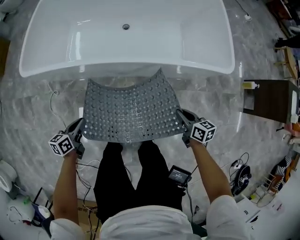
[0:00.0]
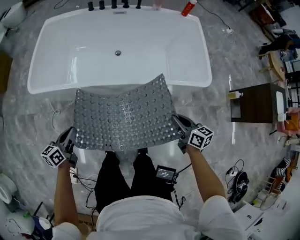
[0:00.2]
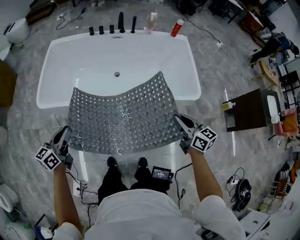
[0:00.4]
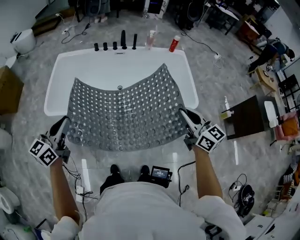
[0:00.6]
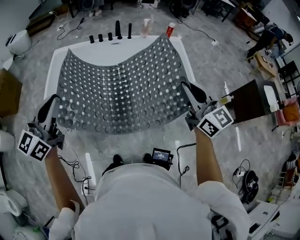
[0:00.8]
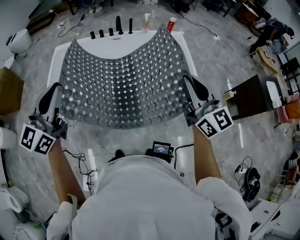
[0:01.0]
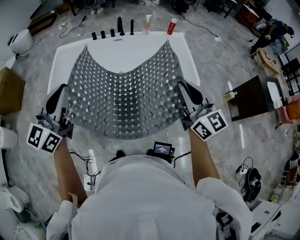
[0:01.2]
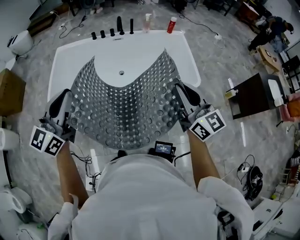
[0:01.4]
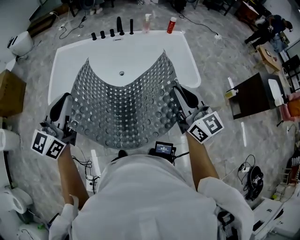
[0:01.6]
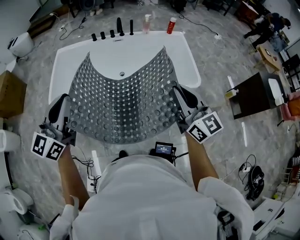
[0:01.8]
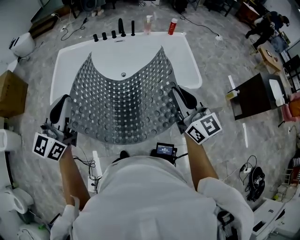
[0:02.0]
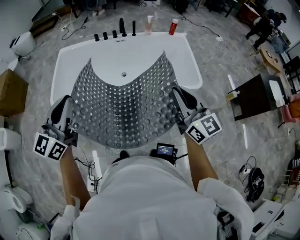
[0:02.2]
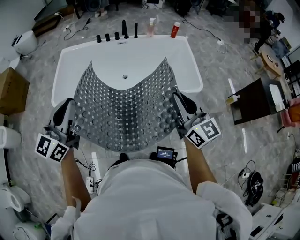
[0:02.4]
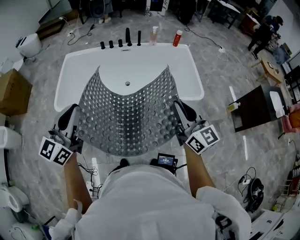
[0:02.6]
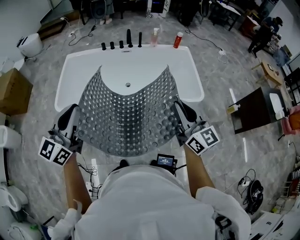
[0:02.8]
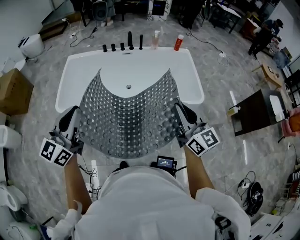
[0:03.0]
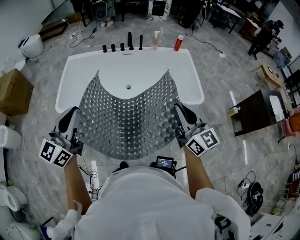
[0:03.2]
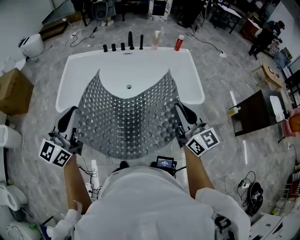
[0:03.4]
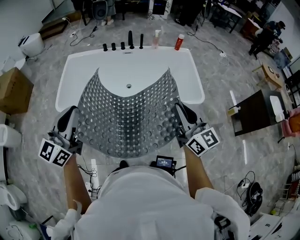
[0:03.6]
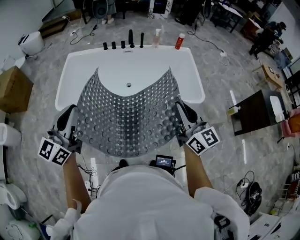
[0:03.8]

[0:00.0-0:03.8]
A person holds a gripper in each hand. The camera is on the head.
0:00.0 to 0:01.2: Both grippers travel together upward, approximately 60 cm. The right gripper points its fingers approximately 40 degrees further upward. Meanwhile the left gripper tilts its fingers about 40 degrees upward.
0:01.2 to 0:03.8: The grippers move only a little.

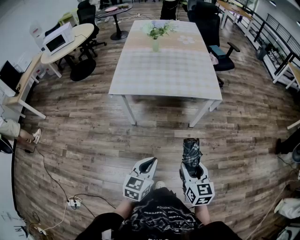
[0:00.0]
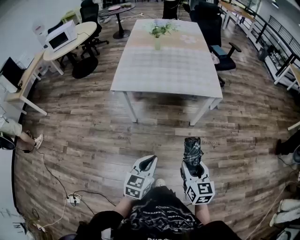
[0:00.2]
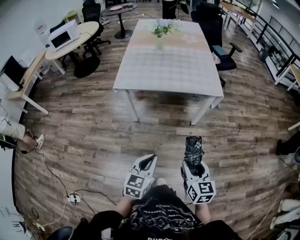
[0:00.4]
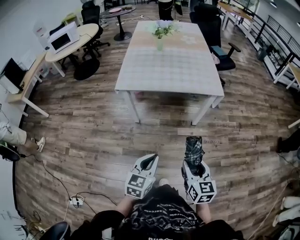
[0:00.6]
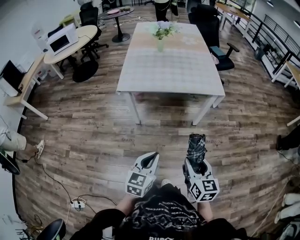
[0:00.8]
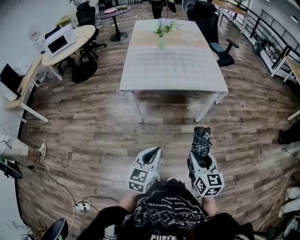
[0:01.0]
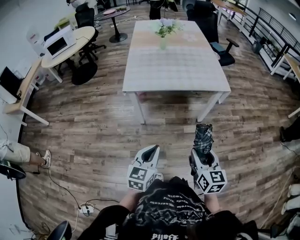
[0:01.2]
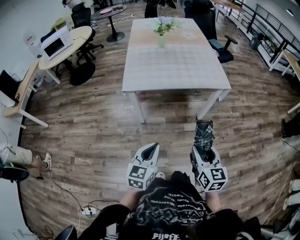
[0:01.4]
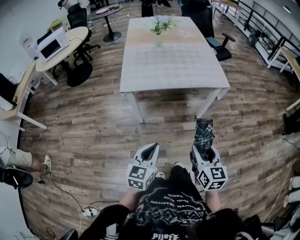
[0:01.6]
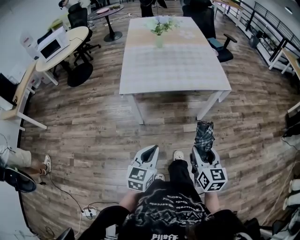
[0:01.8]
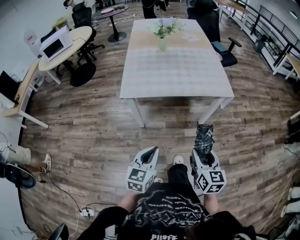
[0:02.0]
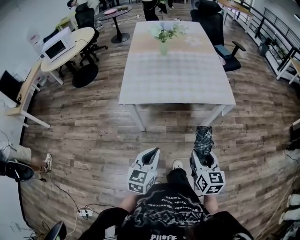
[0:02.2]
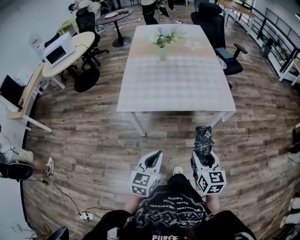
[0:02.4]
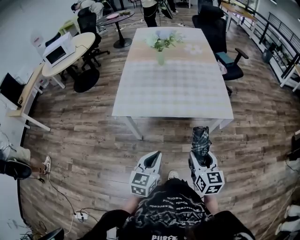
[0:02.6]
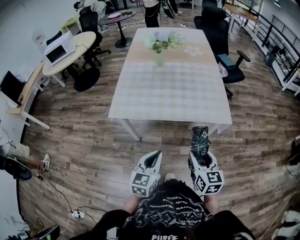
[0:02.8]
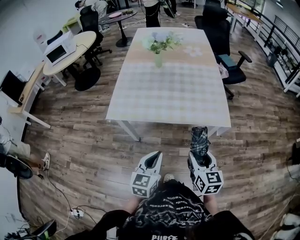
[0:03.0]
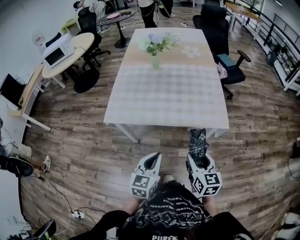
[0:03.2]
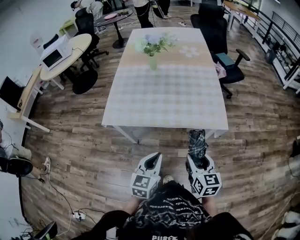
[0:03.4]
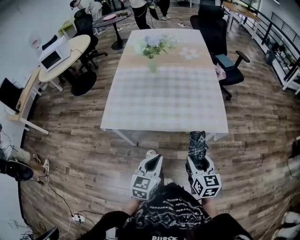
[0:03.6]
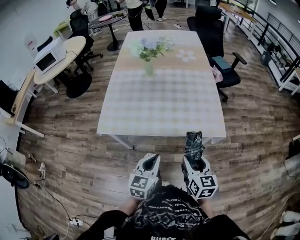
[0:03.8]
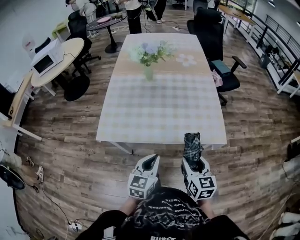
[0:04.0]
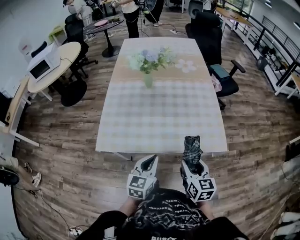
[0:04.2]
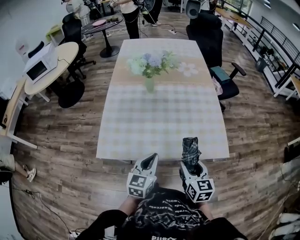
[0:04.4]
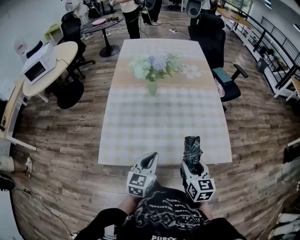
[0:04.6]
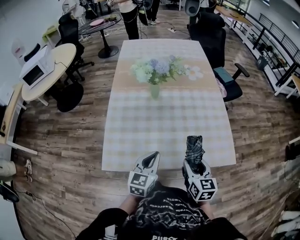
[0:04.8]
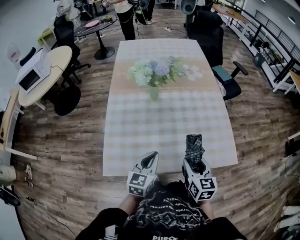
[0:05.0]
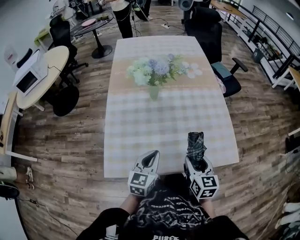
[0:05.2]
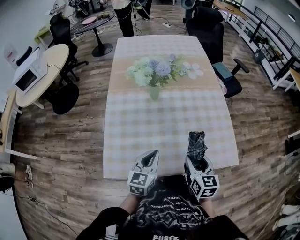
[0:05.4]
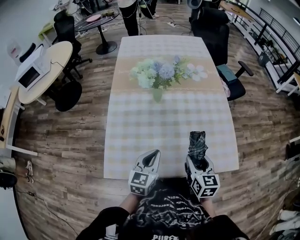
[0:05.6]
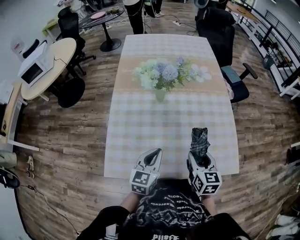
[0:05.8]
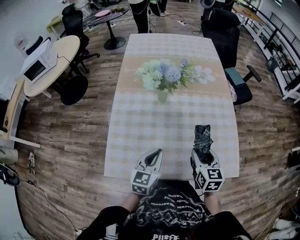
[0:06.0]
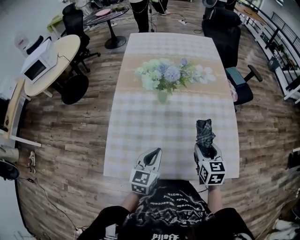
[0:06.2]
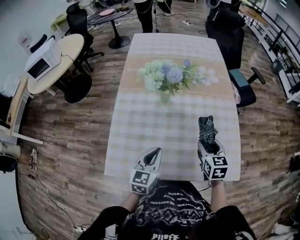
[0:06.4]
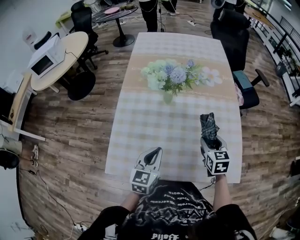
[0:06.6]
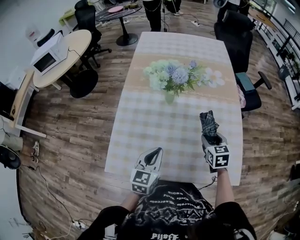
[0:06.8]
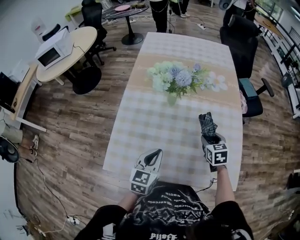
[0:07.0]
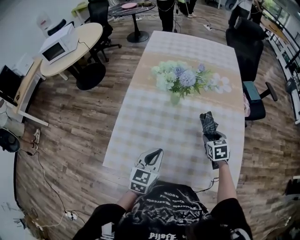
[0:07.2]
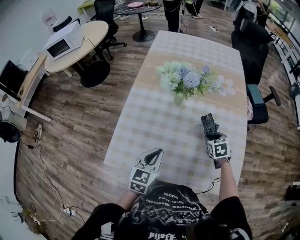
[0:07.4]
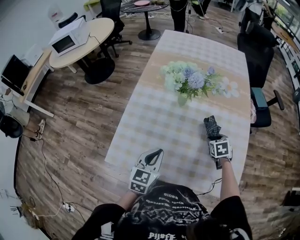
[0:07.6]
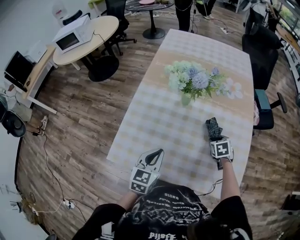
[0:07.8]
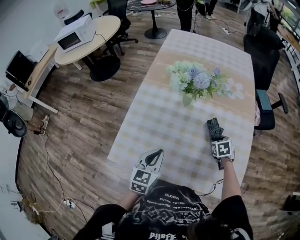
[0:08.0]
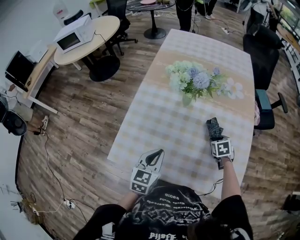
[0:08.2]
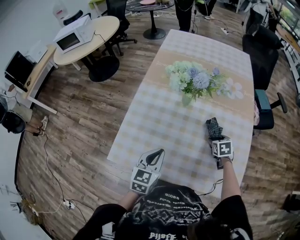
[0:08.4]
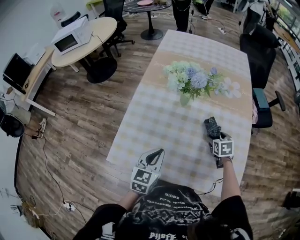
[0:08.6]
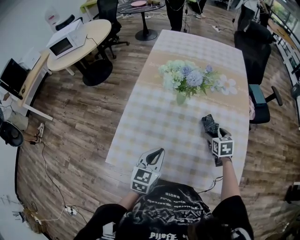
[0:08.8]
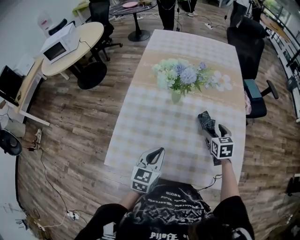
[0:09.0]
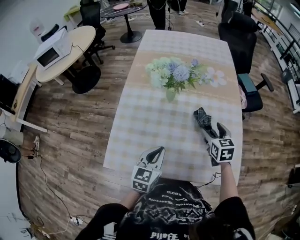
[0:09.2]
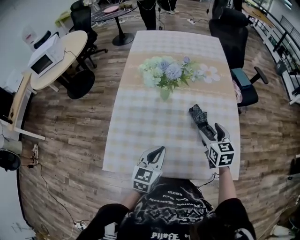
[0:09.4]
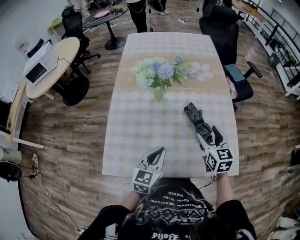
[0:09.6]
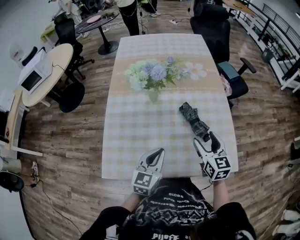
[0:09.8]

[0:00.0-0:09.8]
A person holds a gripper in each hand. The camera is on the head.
0:00.0 to 0:01.4: The two grippers go about 15 cm to the left.
0:01.4 to 0:02.8: The left gripper heads forward and to the right, covering about 30 cm, while the right gripper shifts roughly 30 cm forward.
0:02.8 to 0:04.2: The grippers both shift forward by roughly 20 cm.
0:04.2 to 0:05.6: The two grippers go about 25 cm forward and to the left.
0:05.6 to 0:07.0: The right gripper goes about 20 cm forward, and rotates some 30 degrees.
0:07.0 to 0:08.4: The right gripper moves downward, approximately 5 cm.
0:08.4 to 0:09.8: The right gripper goes about 20 cm upward and backward, and points its fingers about 40 degrees further upward, while the left gripper goes some 5 cm to the right.

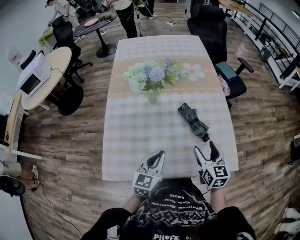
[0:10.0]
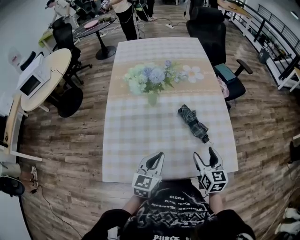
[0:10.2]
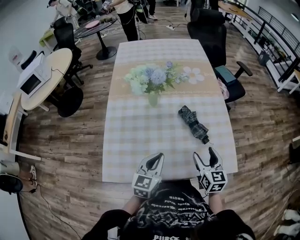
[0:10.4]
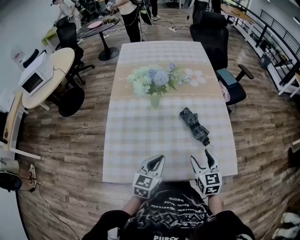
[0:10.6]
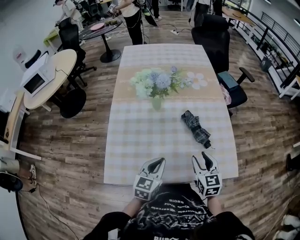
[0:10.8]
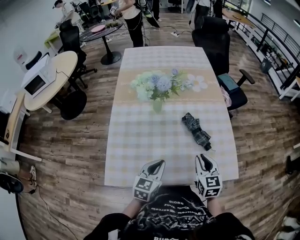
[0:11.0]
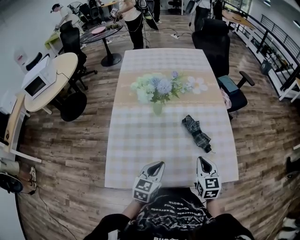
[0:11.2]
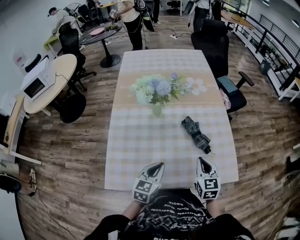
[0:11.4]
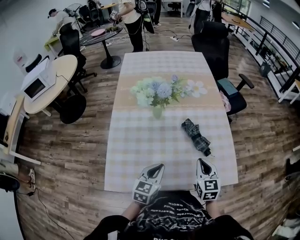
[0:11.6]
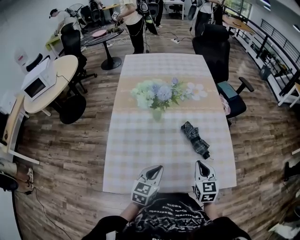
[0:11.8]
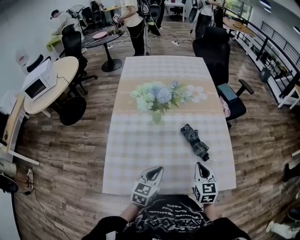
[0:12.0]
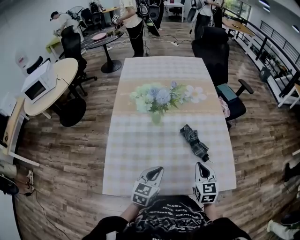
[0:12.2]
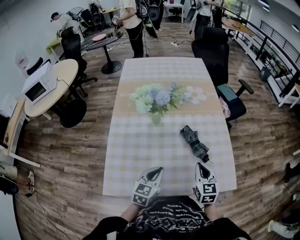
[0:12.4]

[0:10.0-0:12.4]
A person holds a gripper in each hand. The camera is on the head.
0:10.0 to 0:11.2: The right gripper closes up.
0:11.2 to 0:12.4: There are only small adjustments of the grippers.

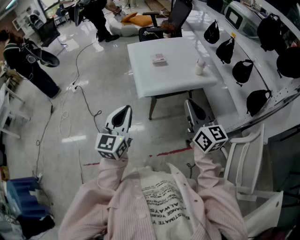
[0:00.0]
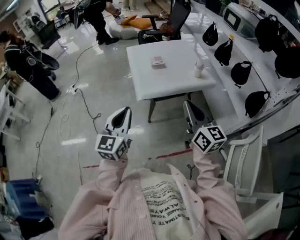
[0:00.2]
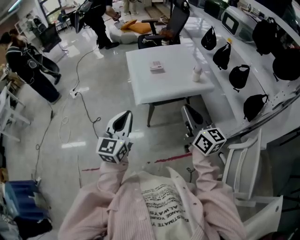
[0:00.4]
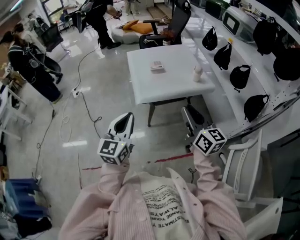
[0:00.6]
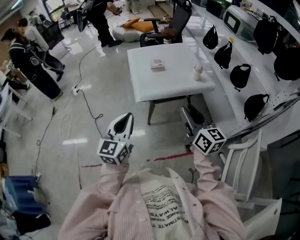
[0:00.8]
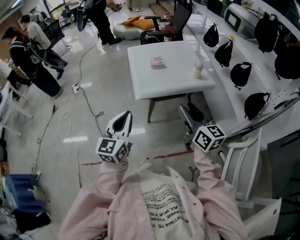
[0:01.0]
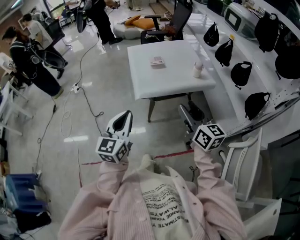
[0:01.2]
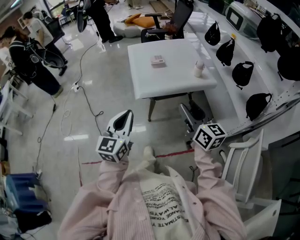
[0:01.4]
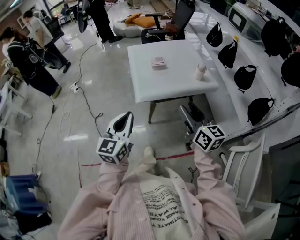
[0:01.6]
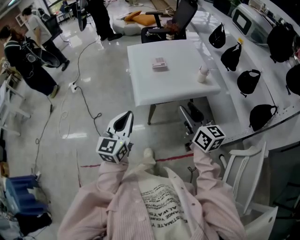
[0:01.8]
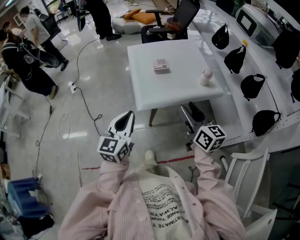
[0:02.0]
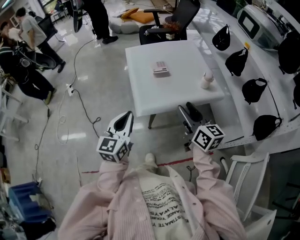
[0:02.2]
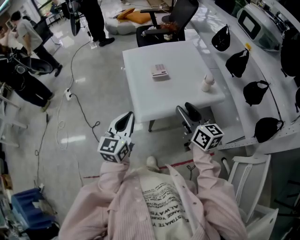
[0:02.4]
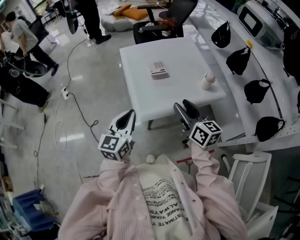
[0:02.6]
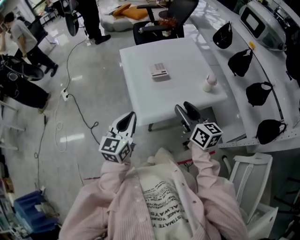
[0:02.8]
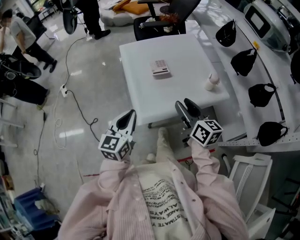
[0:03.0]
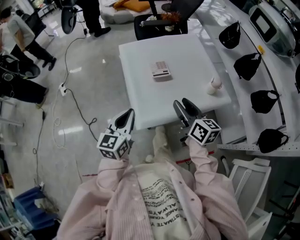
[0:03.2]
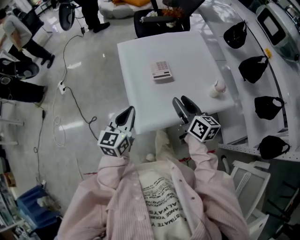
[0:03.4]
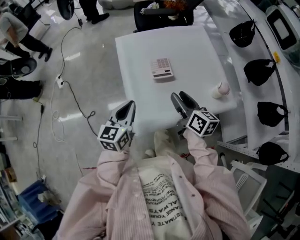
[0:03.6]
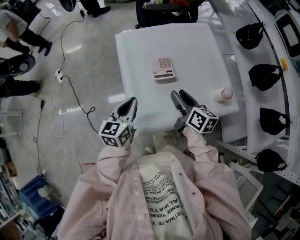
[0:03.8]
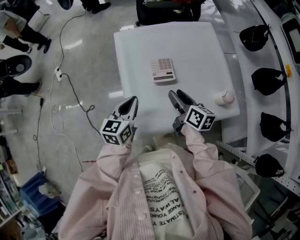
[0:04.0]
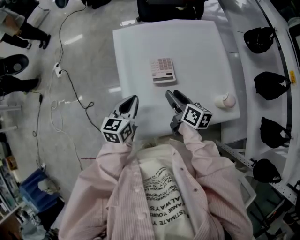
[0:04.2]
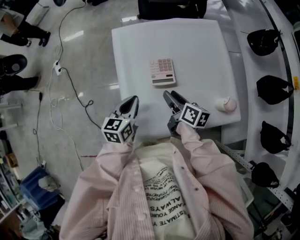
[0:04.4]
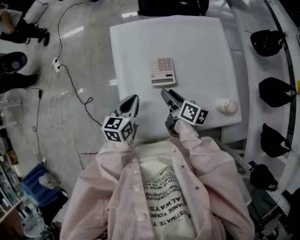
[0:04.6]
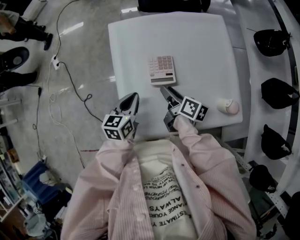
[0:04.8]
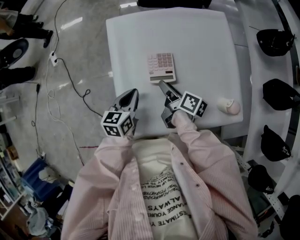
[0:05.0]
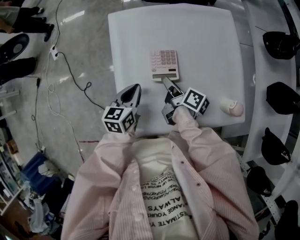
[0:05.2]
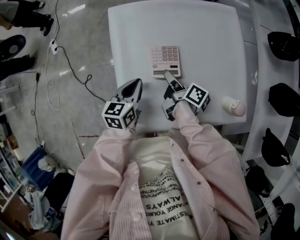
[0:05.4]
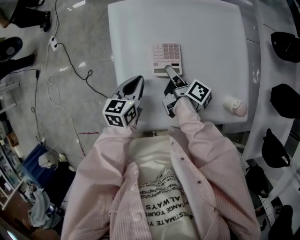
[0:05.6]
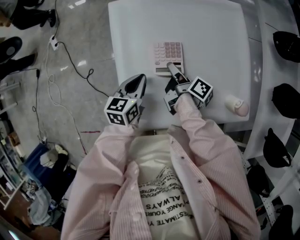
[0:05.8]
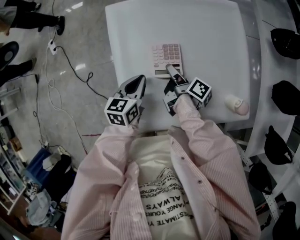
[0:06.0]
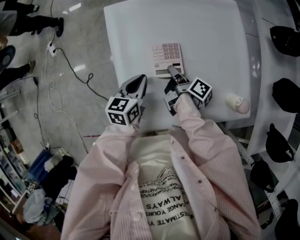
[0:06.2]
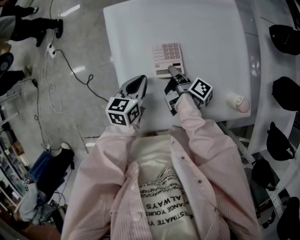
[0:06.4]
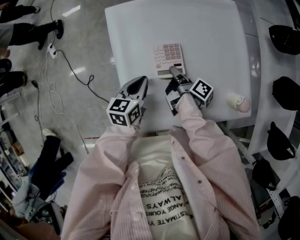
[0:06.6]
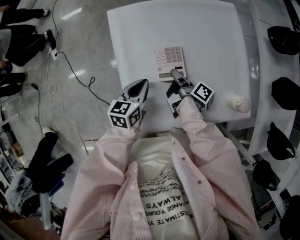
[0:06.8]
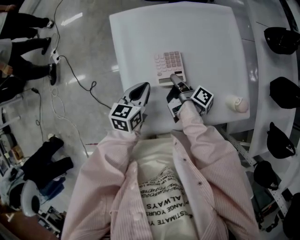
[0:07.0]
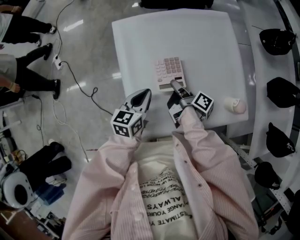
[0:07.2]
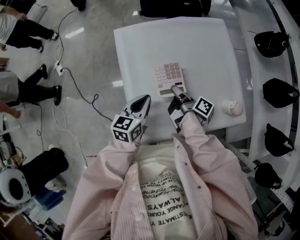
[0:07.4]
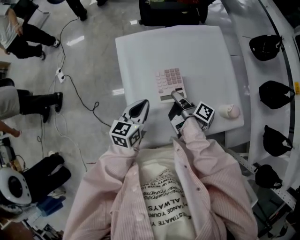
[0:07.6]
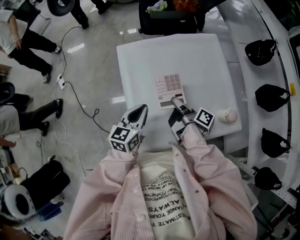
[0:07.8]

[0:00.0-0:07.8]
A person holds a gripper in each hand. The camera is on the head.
0:00.0 to 0:01.6: The right gripper shifts by about 5 cm, and opens its fingers, while the left gripper shifts by some 5 cm.
0:01.6 to 0:03.2: The grippers both shift forward by some 25 cm.
0:03.2 to 0:04.6: The grippers both shift forward and downward by approximately 25 cm. The right gripper rotates some 30 degrees. The left gripper swivels approximately 20 degrees.
0:04.6 to 0:06.2: The left gripper shifts by approximately 5 cm, while the right gripper moves downward, roughly 5 cm, swivels some 40 degrees, and closes.
0:06.2 to 0:07.8: Both grippers move upward, approximately 10 cm.
